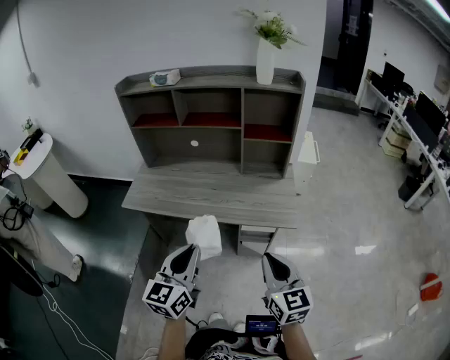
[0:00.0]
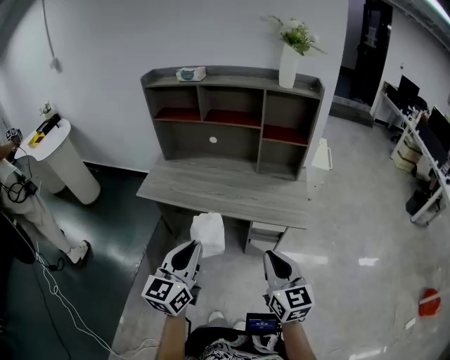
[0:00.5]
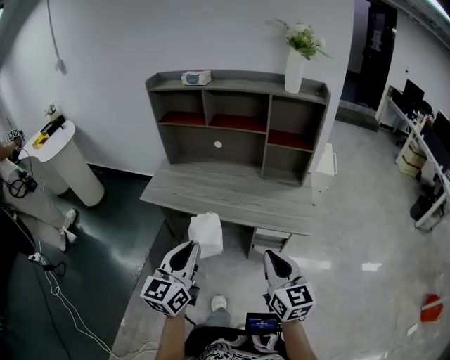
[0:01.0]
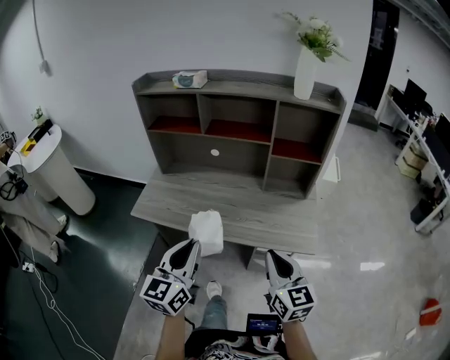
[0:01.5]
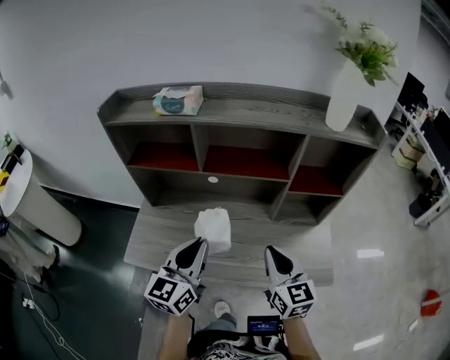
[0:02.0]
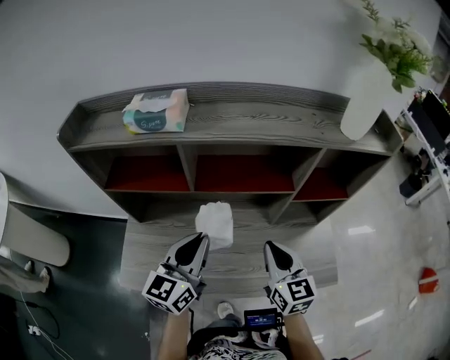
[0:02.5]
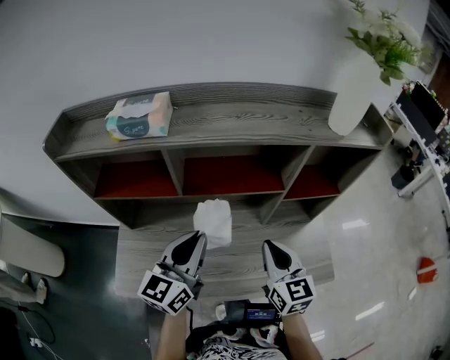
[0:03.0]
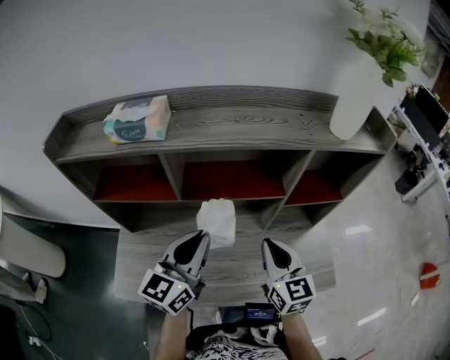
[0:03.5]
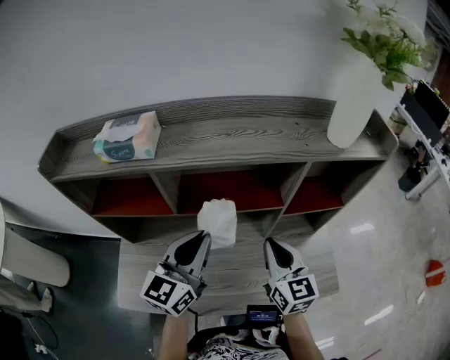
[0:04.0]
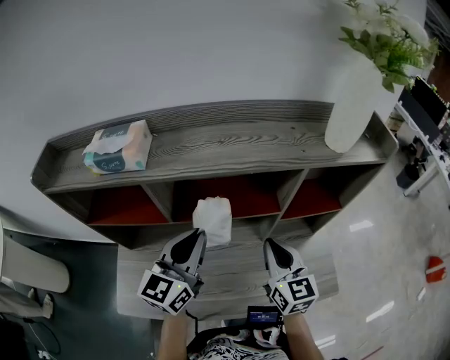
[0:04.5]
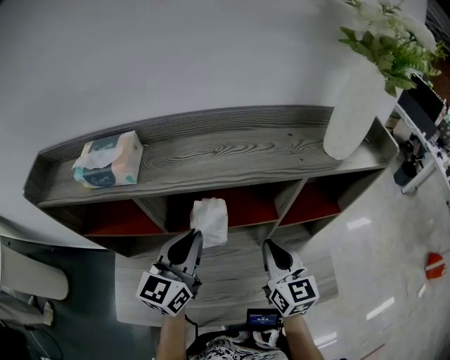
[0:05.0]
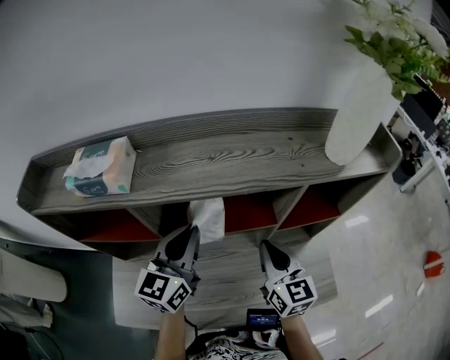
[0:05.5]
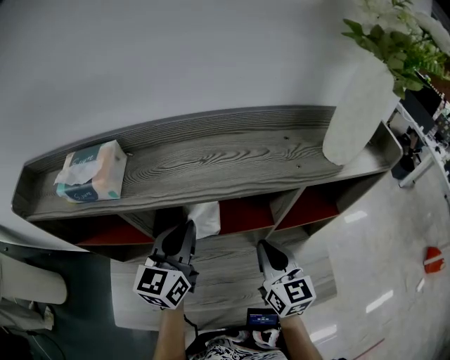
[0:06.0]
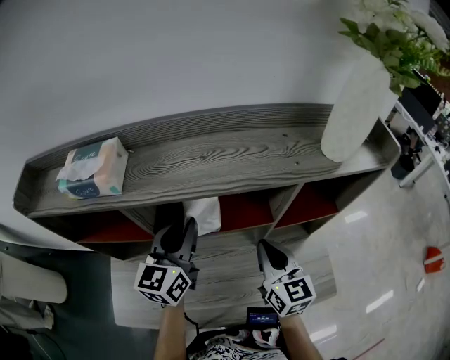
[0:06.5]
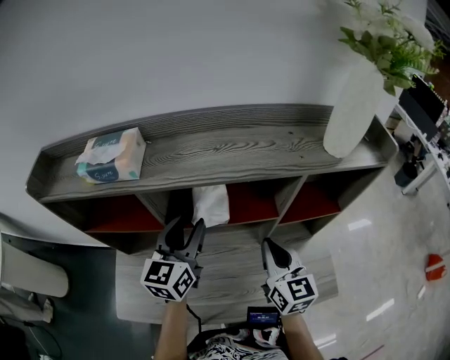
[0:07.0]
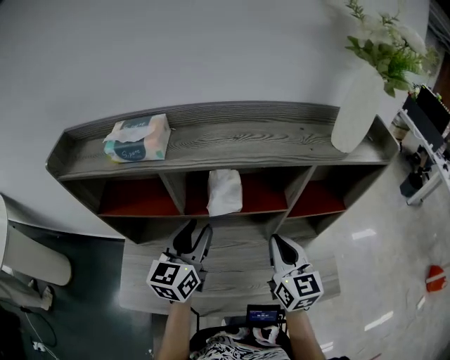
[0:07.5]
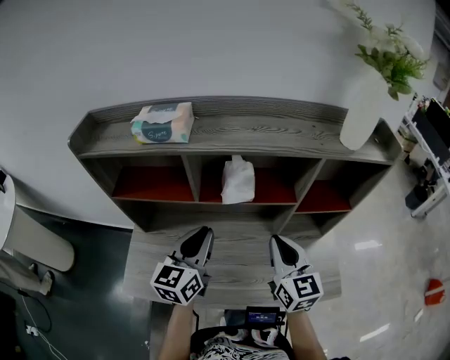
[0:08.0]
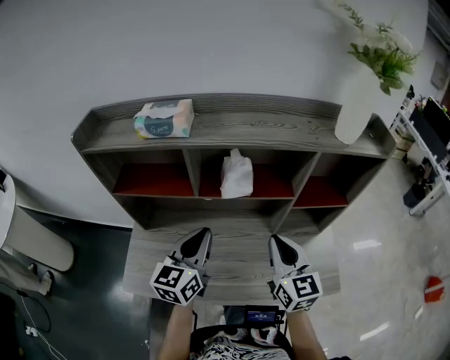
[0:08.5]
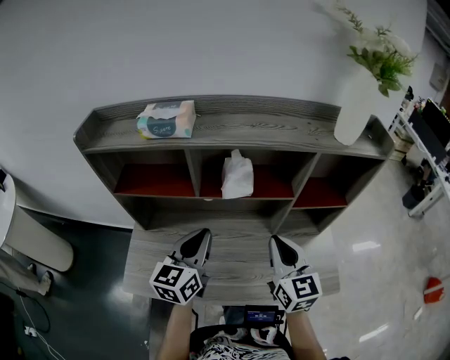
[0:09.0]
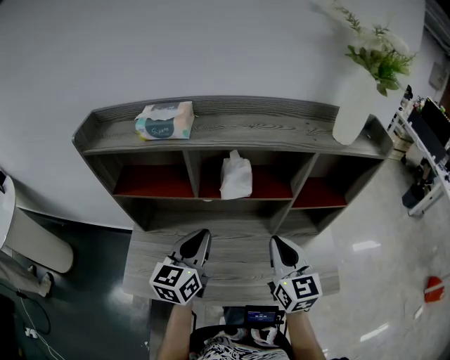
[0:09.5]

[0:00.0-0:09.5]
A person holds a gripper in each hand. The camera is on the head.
0:00.0 to 0:02.0: Both grippers travel together forward, some 35 cm.
0:02.0 to 0:04.0: Both grippers move forward, some 15 cm.
0:04.0 to 0:05.5: The left gripper moves forward, roughly 10 cm, while the right gripper is displaced forward by roughly 5 cm.
0:05.5 to 0:07.5: The left gripper moves about 5 cm, and opens its fingers.
0:07.5 to 0:09.5: Both grippers move backward, approximately 5 cm. The left gripper closes up.

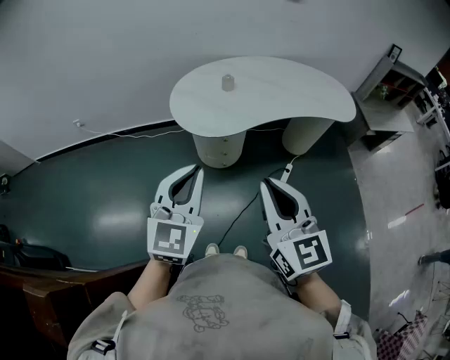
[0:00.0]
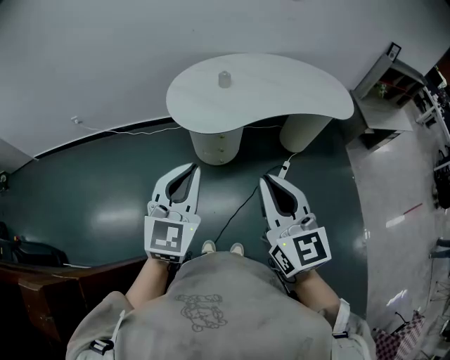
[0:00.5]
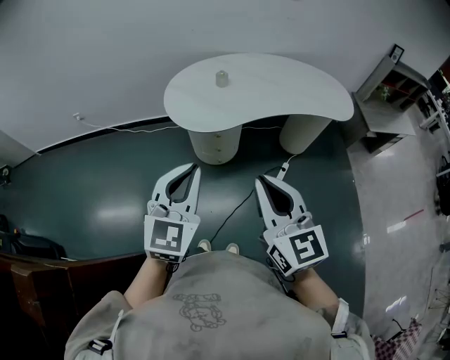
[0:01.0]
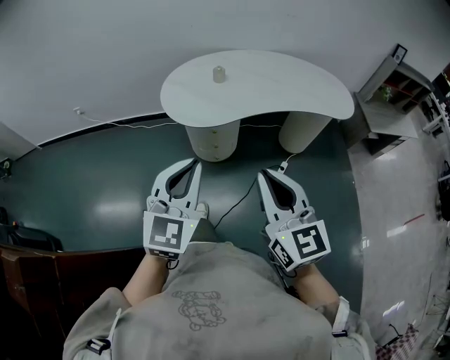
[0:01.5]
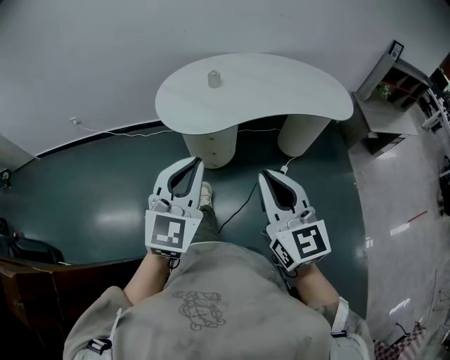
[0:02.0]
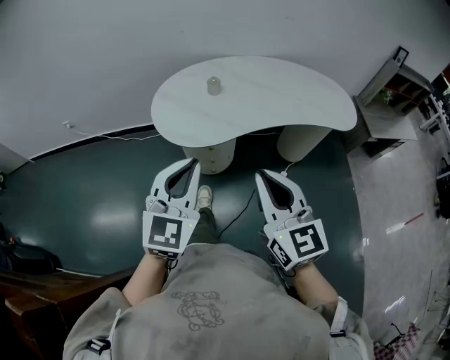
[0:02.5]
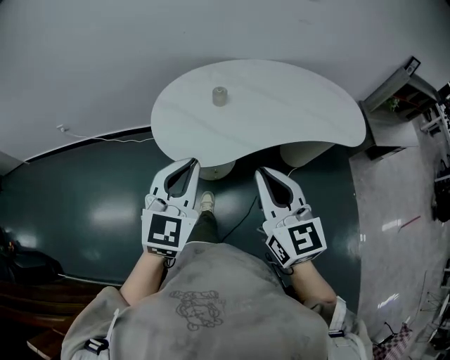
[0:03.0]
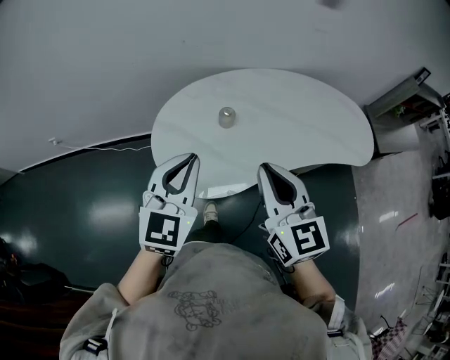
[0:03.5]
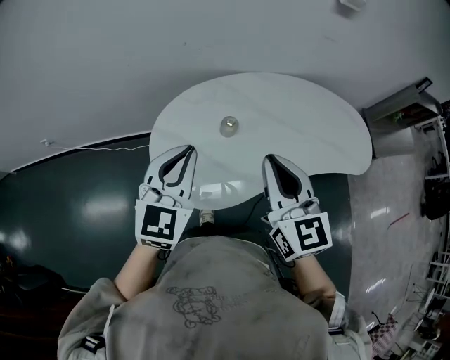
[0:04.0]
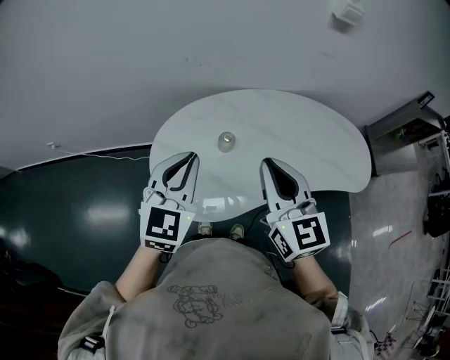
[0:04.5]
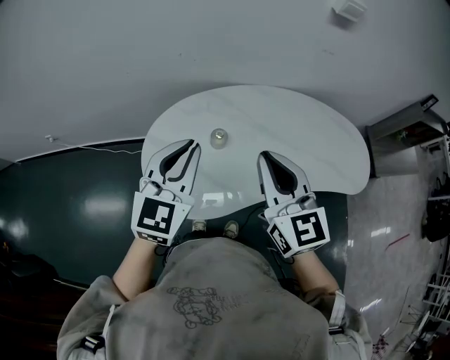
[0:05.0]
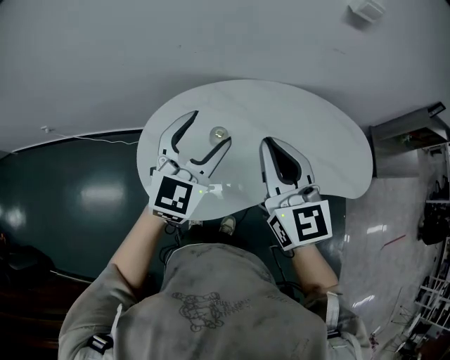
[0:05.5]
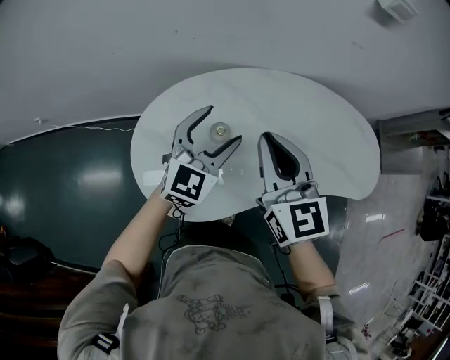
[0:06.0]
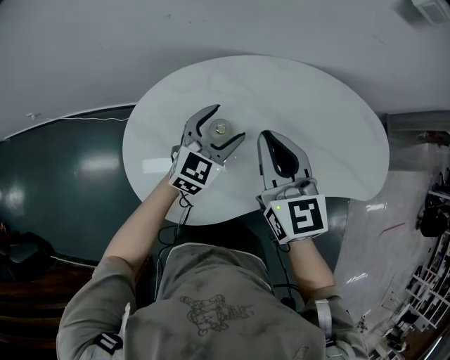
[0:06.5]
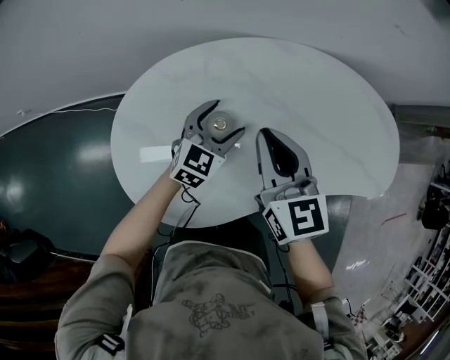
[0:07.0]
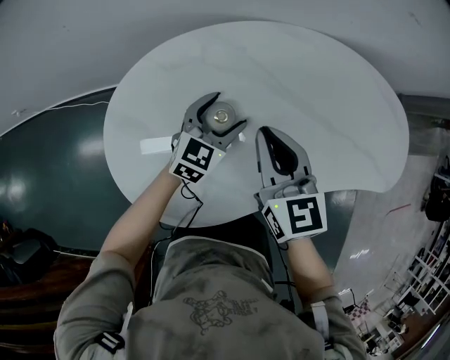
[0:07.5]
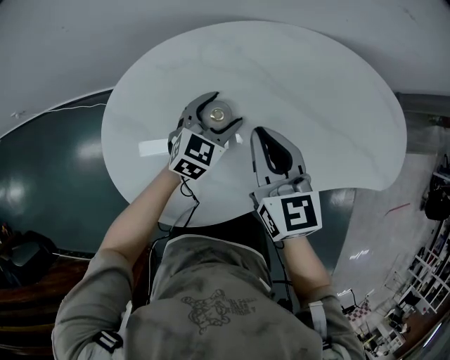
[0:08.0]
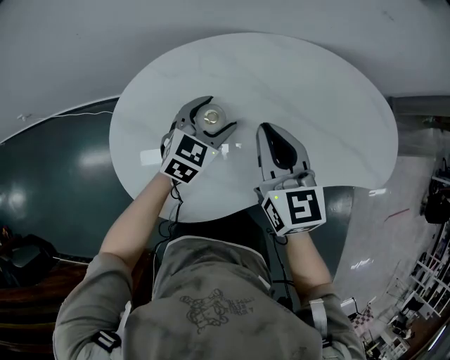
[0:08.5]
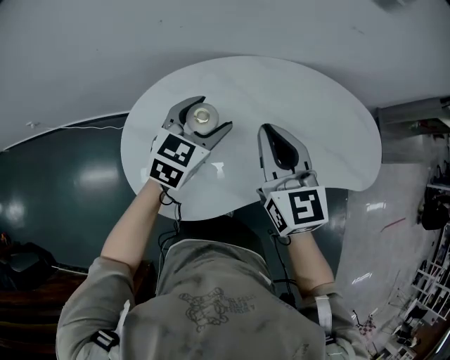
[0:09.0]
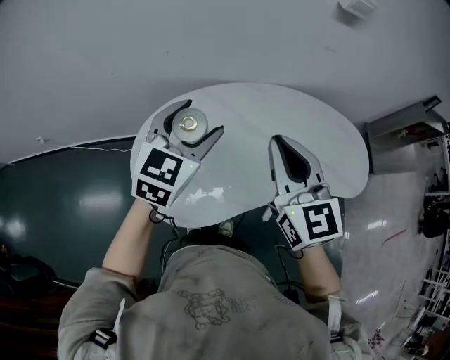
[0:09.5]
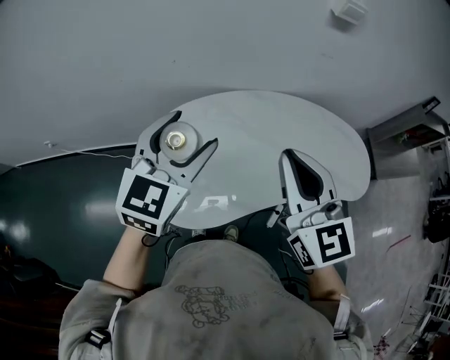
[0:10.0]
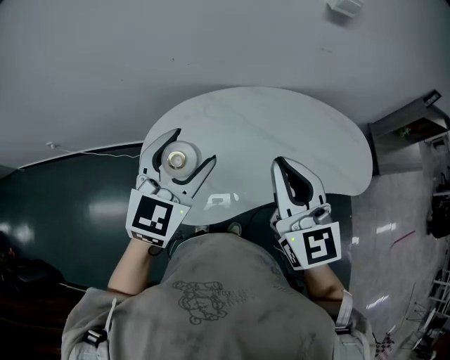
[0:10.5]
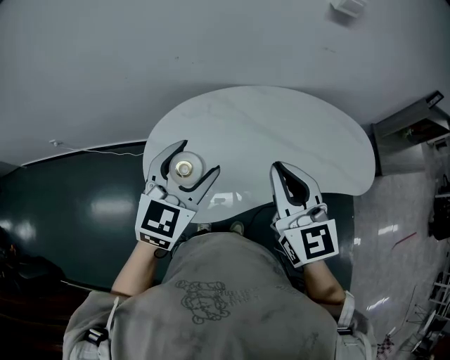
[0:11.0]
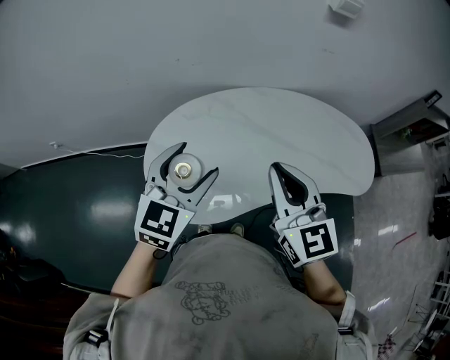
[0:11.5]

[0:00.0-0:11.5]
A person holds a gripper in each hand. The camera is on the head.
0:00.0 to 0:02.0: The grippers both shift to the right by approximately 10 cm.
0:02.0 to 0:04.0: The two grippers travel together, forward, roughly 50 cm.
0:04.0 to 0:06.0: The left gripper travels forward, to the right and downward by some 20 cm, and opens its fingers. Meanwhile the right gripper moves forward, about 15 cm.
0:06.0 to 0:07.5: Both grippers travel together downward, roughly 20 cm.
0:07.5 to 0:09.5: Both grippers move upward, about 30 cm.
0:09.5 to 0:11.5: Both grippers travel together backward, about 10 cm.

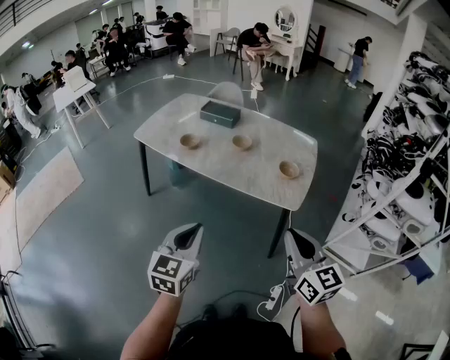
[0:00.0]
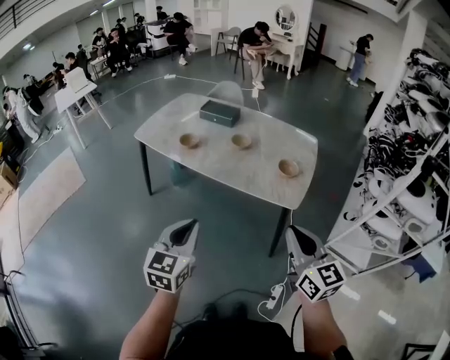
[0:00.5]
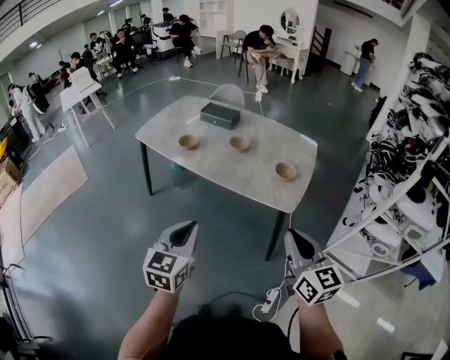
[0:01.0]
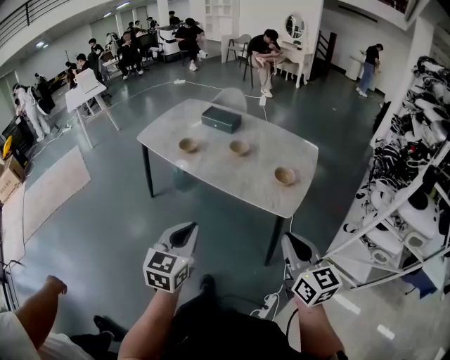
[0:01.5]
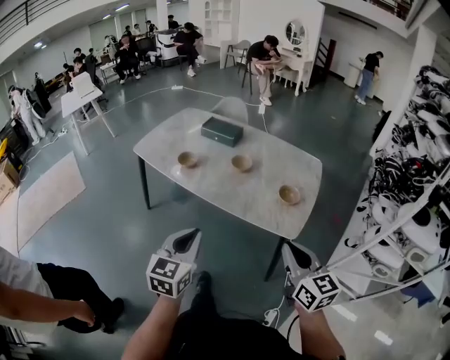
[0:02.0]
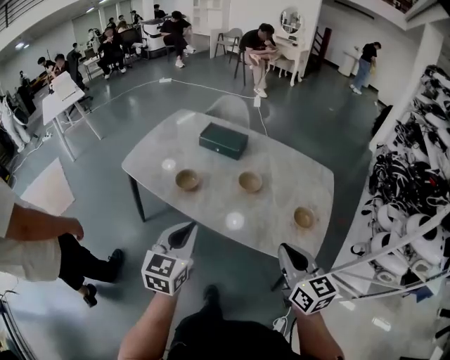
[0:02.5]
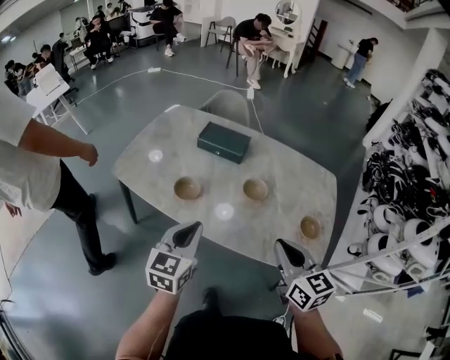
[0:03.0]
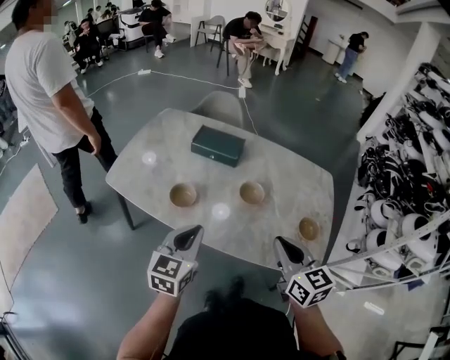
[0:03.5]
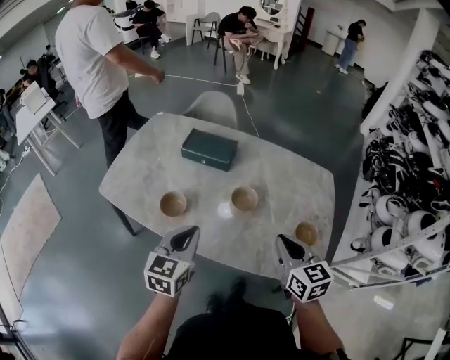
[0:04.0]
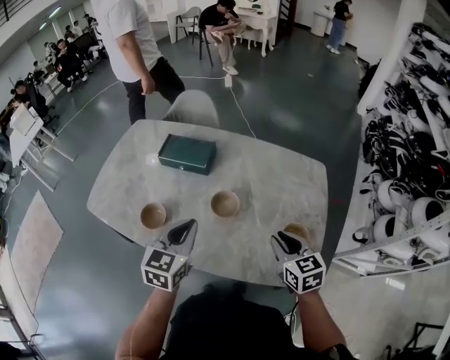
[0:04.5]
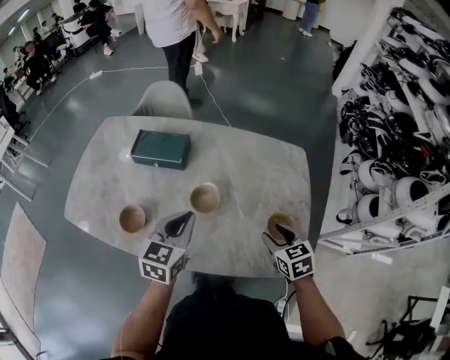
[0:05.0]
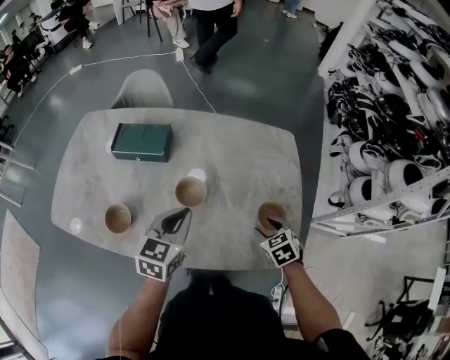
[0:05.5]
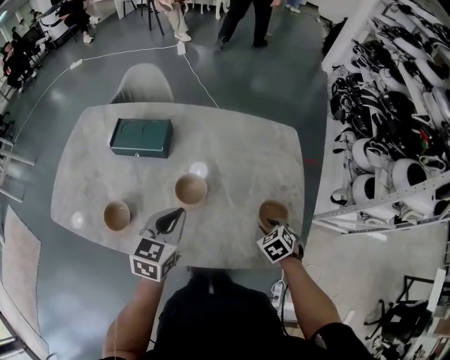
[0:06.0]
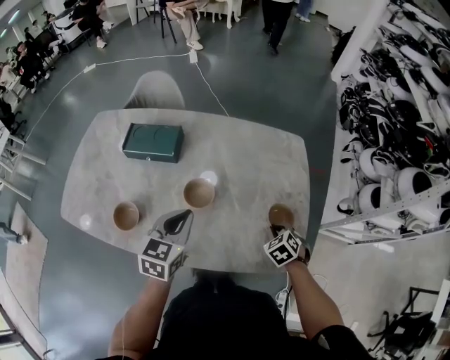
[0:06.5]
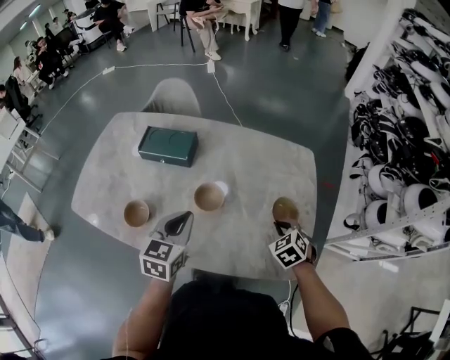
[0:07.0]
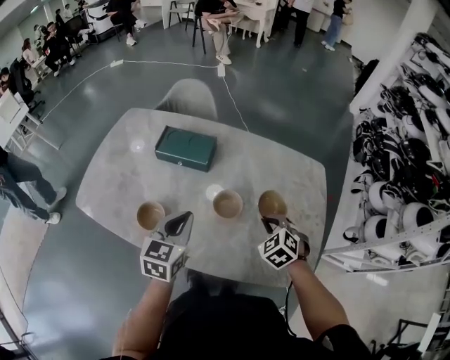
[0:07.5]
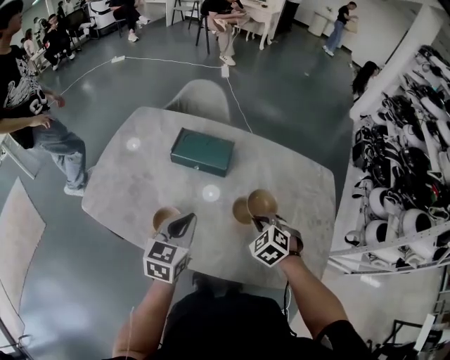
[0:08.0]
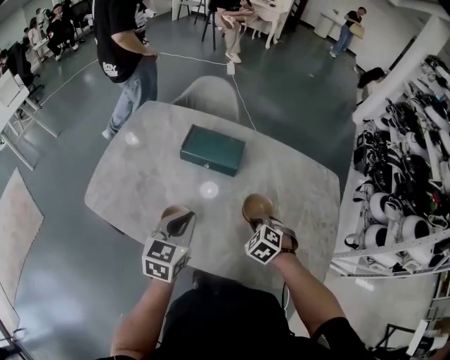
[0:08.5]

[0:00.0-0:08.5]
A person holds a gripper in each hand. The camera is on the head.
0:00.0 to 0:02.0: The left gripper goes about 10 cm forward; the right gripper shifts about 10 cm forward and to the right.
0:02.0 to 0:04.0: Both grippers travel together forward, about 40 cm.
0:04.0 to 0:06.5: The left gripper goes roughly 20 cm forward, to the right and downward, while the right gripper travels downward and to the right by approximately 30 cm, points its fingers some 40 degrees further downward, and opens, then closes once more.
0:06.5 to 0:08.5: The grippers both shift to the left by about 30 cm. The right gripper turns by roughly 30 degrees.
